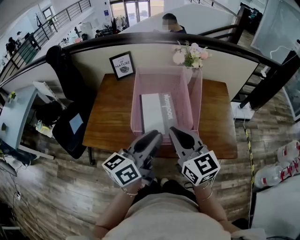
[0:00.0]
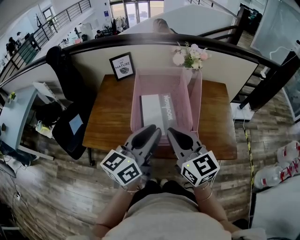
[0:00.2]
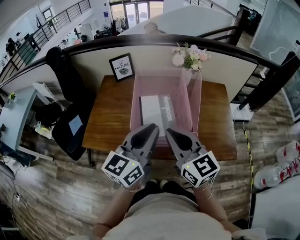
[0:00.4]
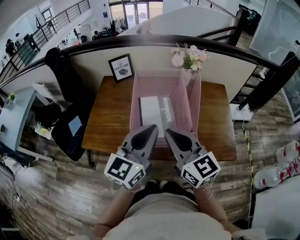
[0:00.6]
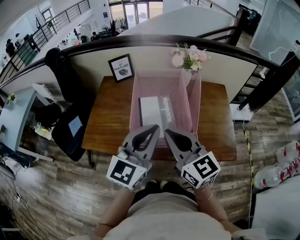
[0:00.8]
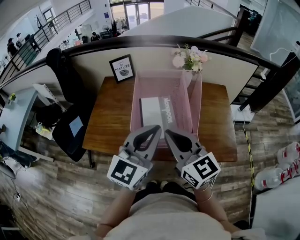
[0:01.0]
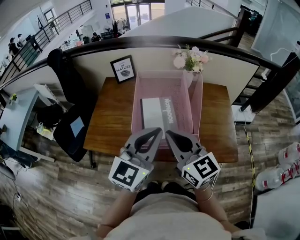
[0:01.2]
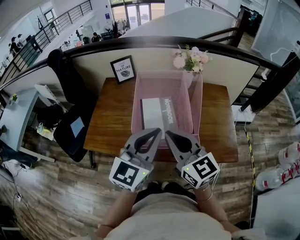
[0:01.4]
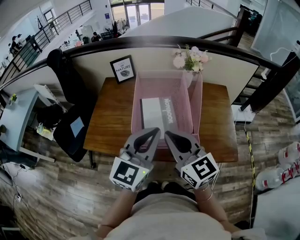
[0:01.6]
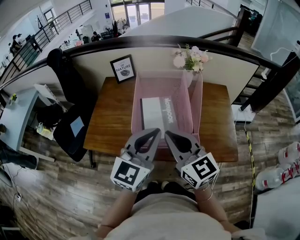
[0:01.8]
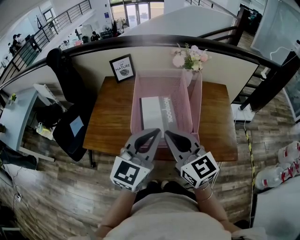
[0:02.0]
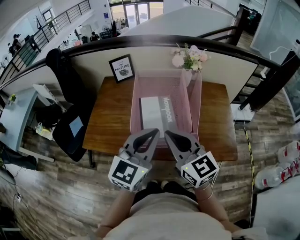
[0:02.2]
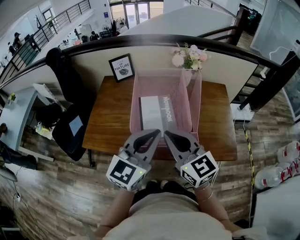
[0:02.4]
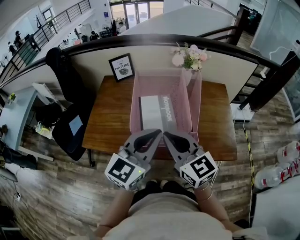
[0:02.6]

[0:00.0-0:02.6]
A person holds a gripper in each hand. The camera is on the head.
0:00.0 to 0:01.2: The left gripper rotates around the line of its fingers by roughly 40 degrees, clockwise from behind.
0:01.2 to 0:02.6: The grippers move only a little.

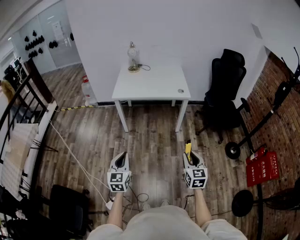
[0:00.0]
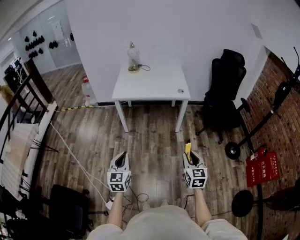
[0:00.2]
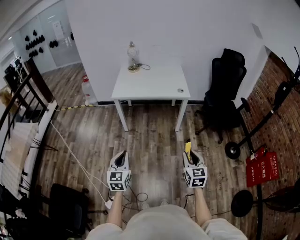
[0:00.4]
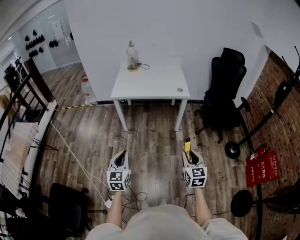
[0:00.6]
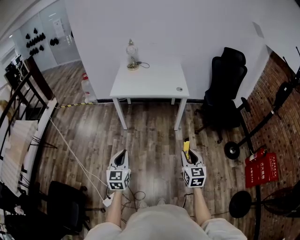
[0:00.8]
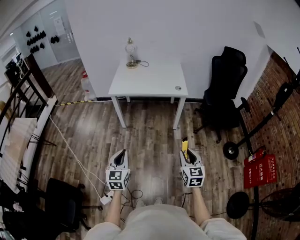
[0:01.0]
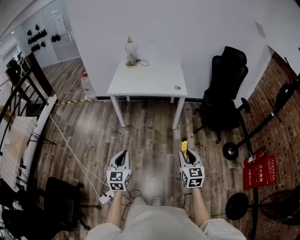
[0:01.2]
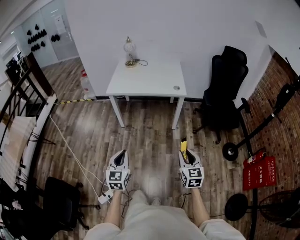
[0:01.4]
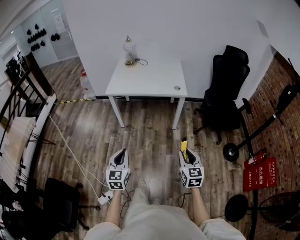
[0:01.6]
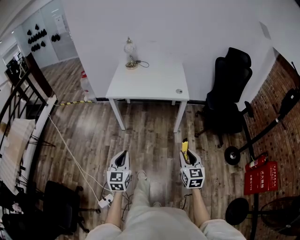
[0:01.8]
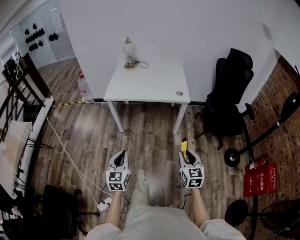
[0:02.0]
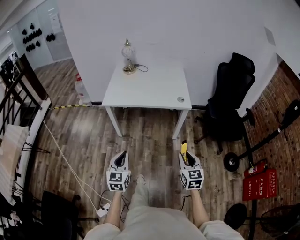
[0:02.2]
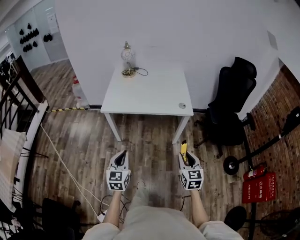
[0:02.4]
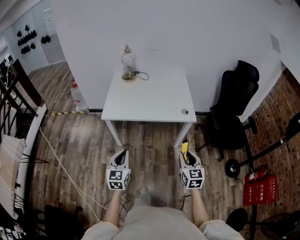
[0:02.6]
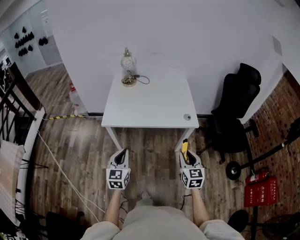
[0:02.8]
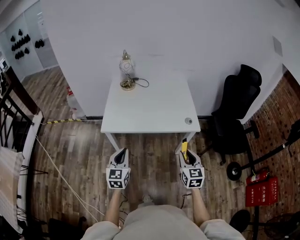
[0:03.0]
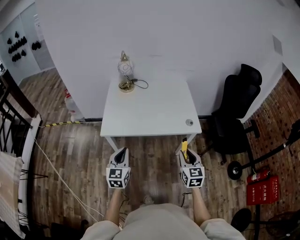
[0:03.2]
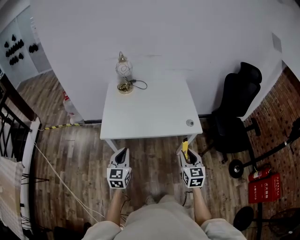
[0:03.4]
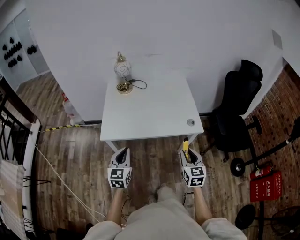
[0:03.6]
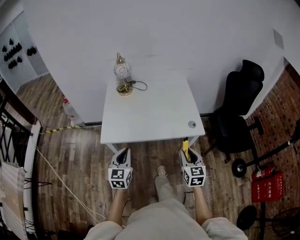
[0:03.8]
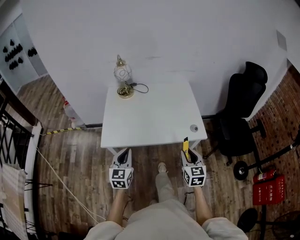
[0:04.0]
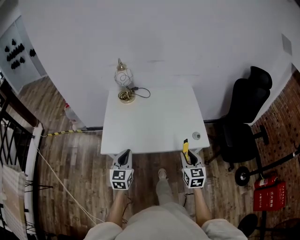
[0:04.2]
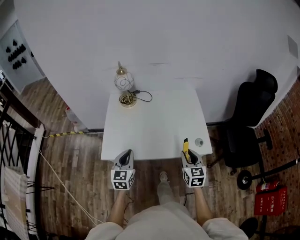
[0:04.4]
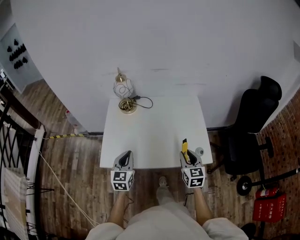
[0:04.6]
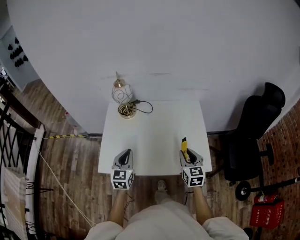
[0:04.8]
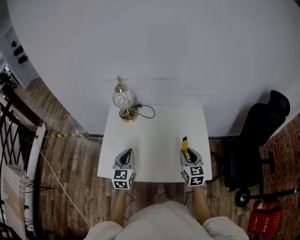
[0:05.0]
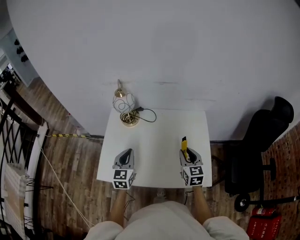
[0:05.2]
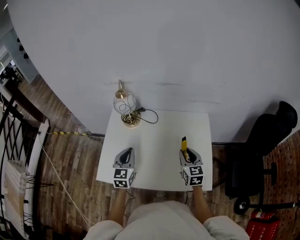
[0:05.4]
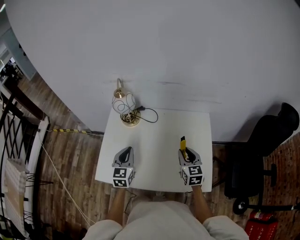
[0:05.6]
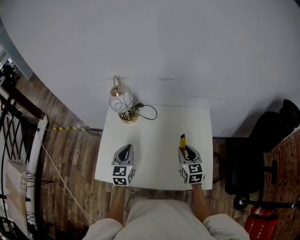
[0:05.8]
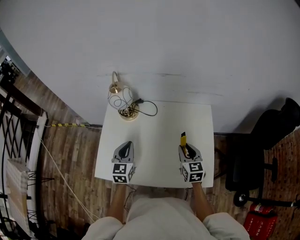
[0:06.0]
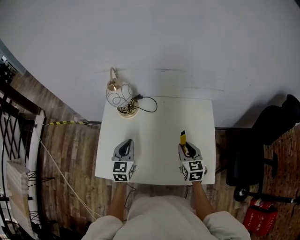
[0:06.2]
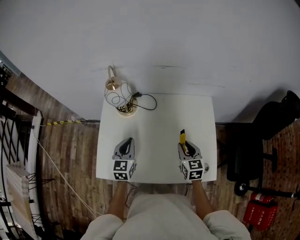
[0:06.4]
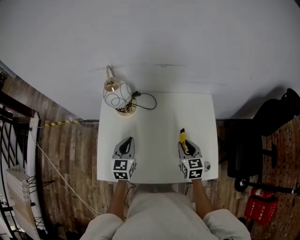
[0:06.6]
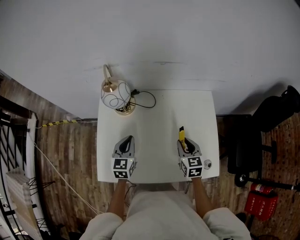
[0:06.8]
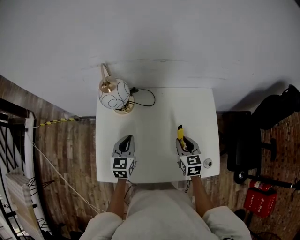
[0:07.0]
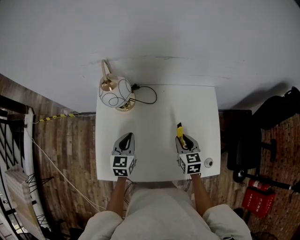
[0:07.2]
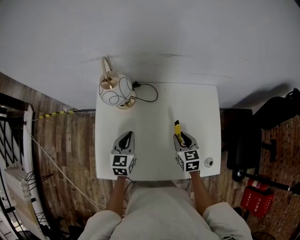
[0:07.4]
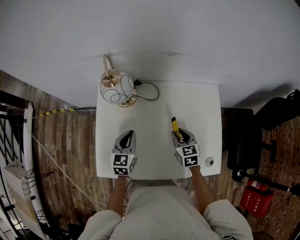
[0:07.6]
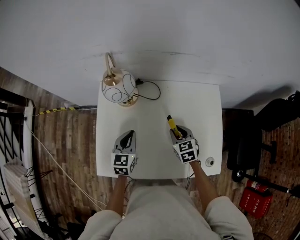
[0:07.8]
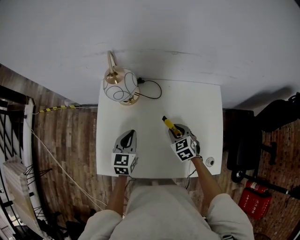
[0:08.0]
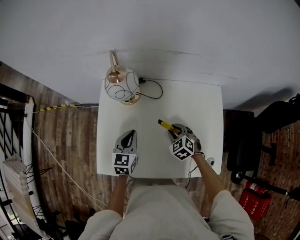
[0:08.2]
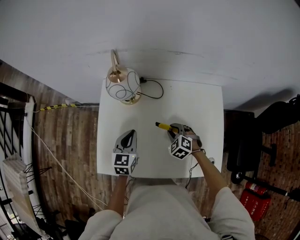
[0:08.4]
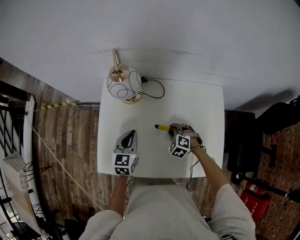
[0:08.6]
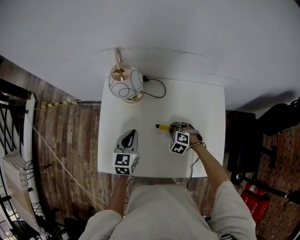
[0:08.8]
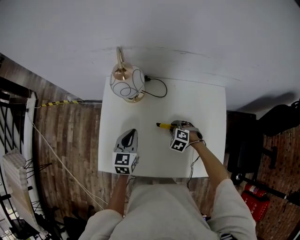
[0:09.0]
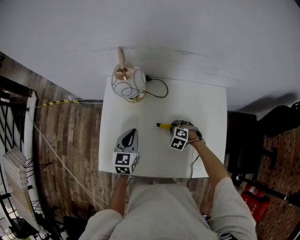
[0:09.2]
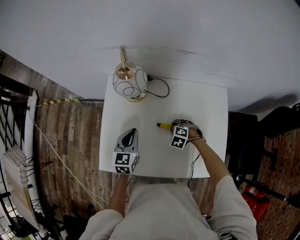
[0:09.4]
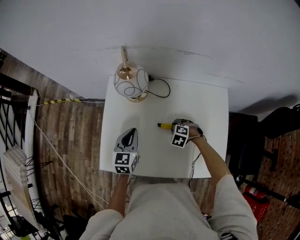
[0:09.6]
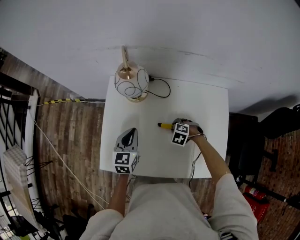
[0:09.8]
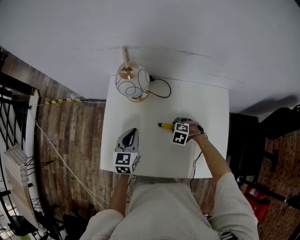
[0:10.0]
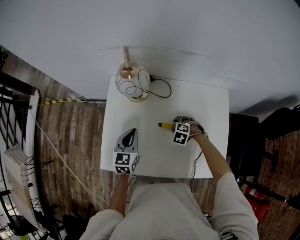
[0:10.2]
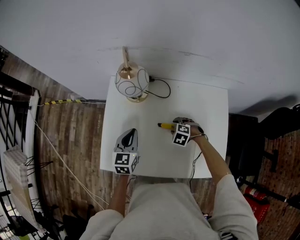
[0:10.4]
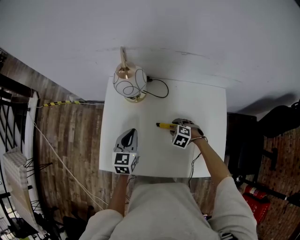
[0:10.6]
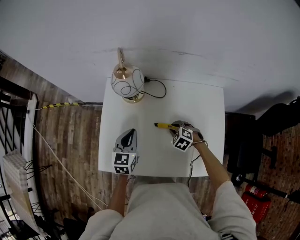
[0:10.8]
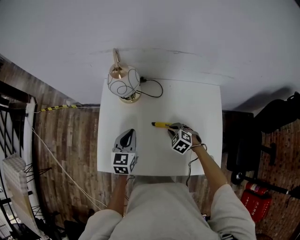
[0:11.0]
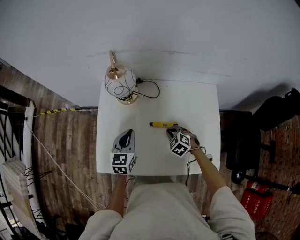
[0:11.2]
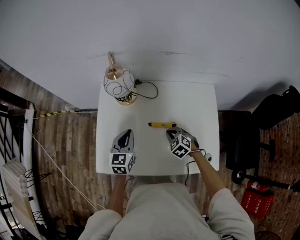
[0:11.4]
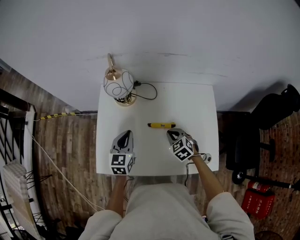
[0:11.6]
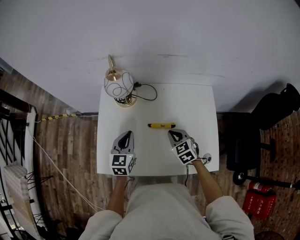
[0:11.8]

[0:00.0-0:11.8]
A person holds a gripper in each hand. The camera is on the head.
0:00.0 to 0:01.4: The grippers both shift to the right by about 10 cm.
0:01.4 to 0:03.0: Both grippers are carried forward, some 40 cm.
0:03.0 to 0:04.4: Both grippers travel together forward, approximately 25 cm.
0:04.4 to 0:06.0: The grippers both shift forward by some 25 cm.
0:06.0 to 0:07.4: The left gripper goes roughly 10 cm downward and forward. Meanwhile the right gripper shifts about 10 cm downward and to the left.
0:07.4 to 0:08.8: The right gripper travels downward and to the left by roughly 10 cm, and rolls counterclockwise, seen from behind, by roughly 60 degrees.
0:08.8 to 0:10.4: The right gripper opens.
0:10.4 to 0:11.8: The right gripper travels upward by some 15 cm, tilts its fingers some 30 degrees upward, and closes its fingers. Meanwhile the left gripper shifts by roughly 5 cm.

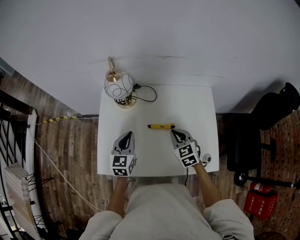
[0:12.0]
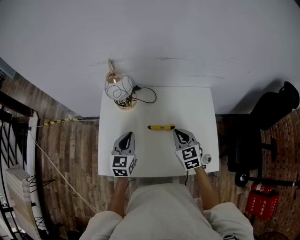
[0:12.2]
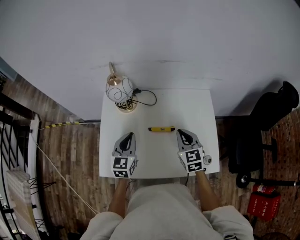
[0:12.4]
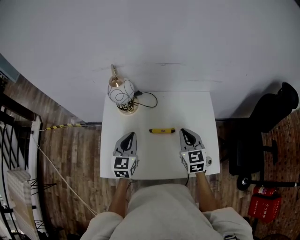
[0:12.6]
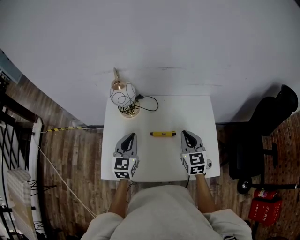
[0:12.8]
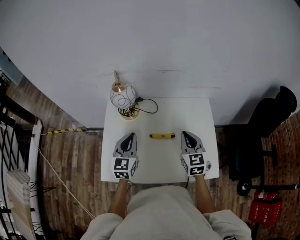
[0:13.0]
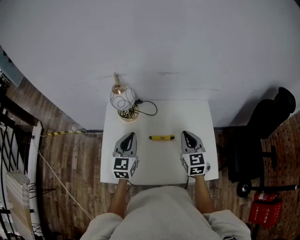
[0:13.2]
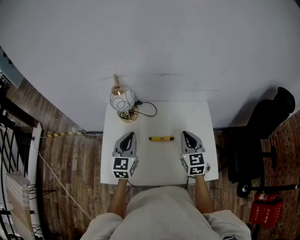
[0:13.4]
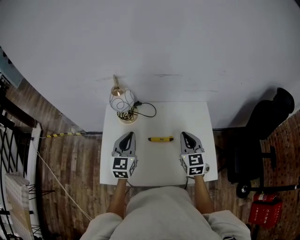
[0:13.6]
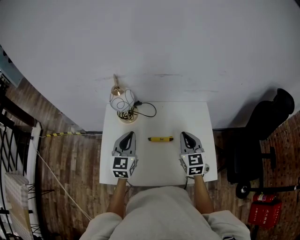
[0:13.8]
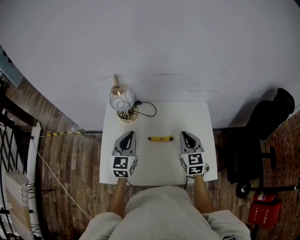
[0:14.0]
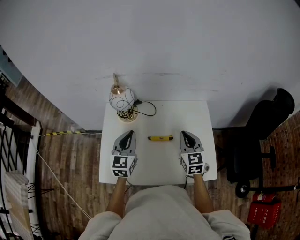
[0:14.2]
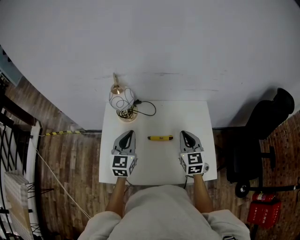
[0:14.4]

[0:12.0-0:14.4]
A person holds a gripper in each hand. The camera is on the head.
0:12.0 to 0:13.2: The right gripper shifts some 15 cm upward and to the right, and changes its angle by roughly 30 degrees. The left gripper heads upward, covering approximately 10 cm.
0:13.2 to 0:14.4: Neither gripper changes place.

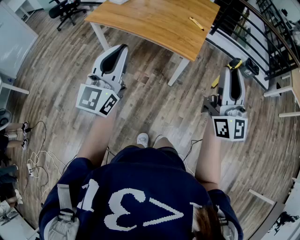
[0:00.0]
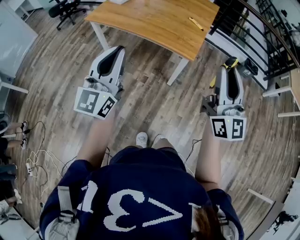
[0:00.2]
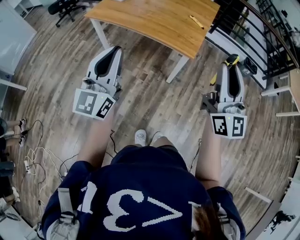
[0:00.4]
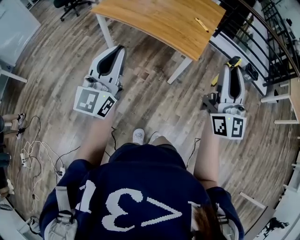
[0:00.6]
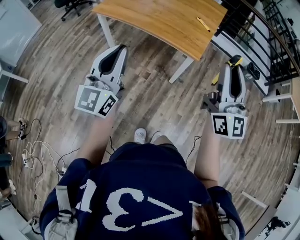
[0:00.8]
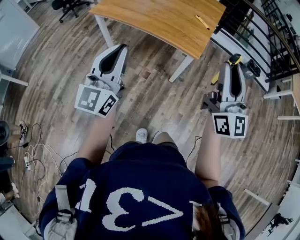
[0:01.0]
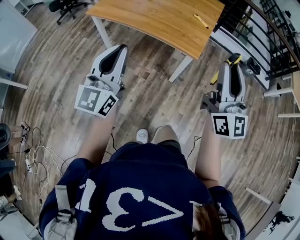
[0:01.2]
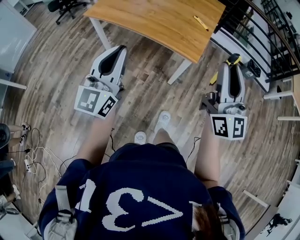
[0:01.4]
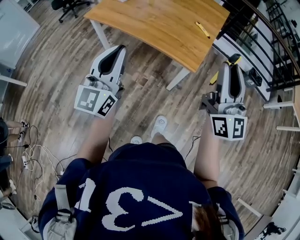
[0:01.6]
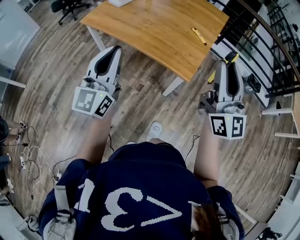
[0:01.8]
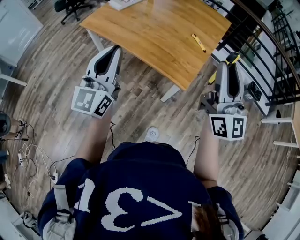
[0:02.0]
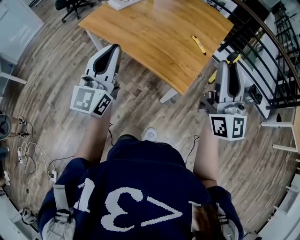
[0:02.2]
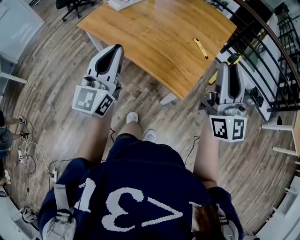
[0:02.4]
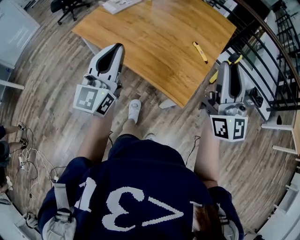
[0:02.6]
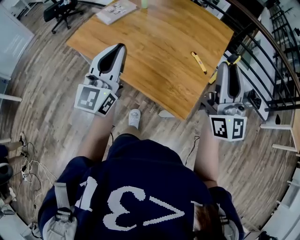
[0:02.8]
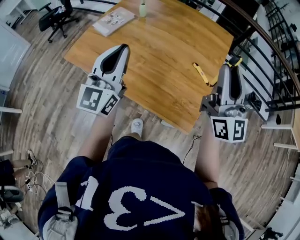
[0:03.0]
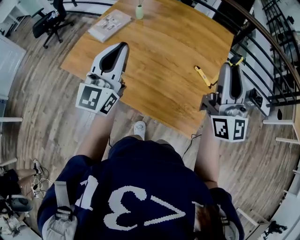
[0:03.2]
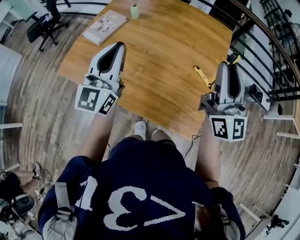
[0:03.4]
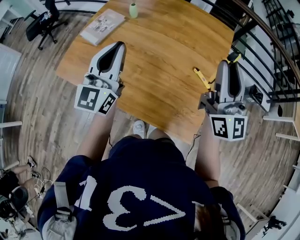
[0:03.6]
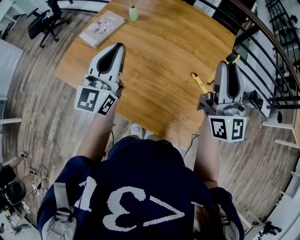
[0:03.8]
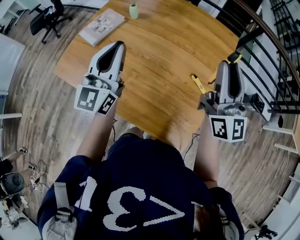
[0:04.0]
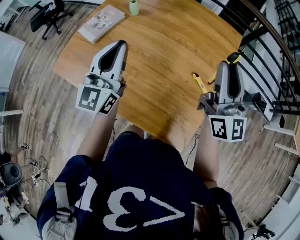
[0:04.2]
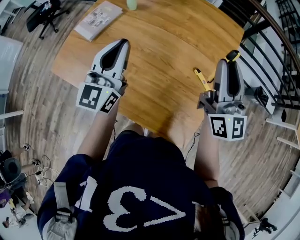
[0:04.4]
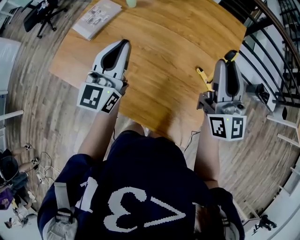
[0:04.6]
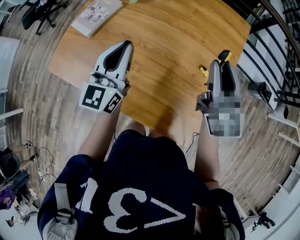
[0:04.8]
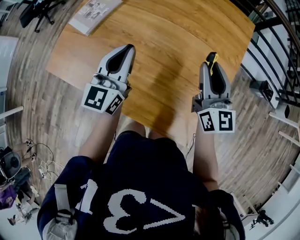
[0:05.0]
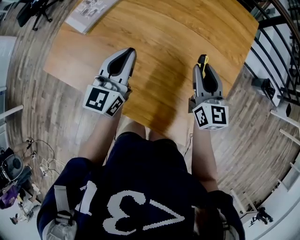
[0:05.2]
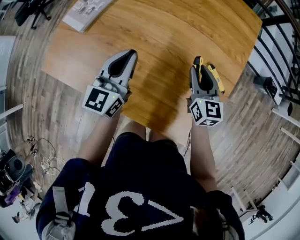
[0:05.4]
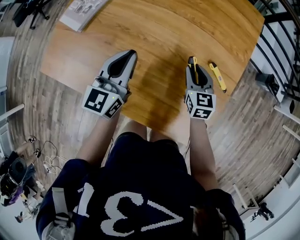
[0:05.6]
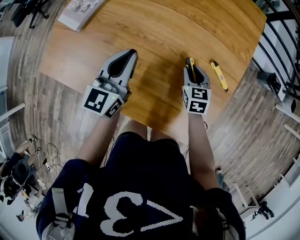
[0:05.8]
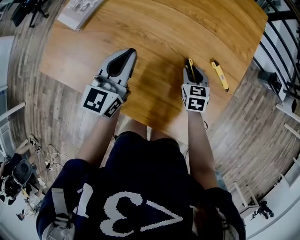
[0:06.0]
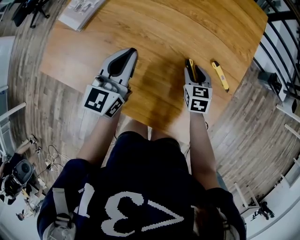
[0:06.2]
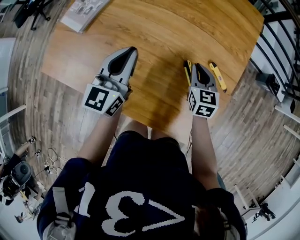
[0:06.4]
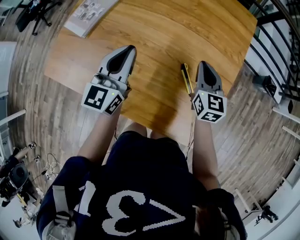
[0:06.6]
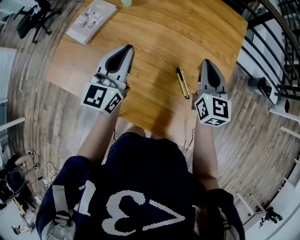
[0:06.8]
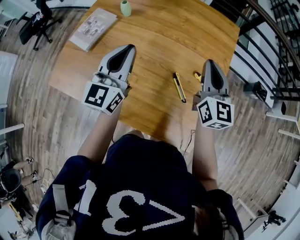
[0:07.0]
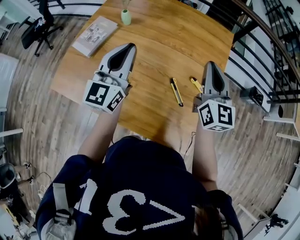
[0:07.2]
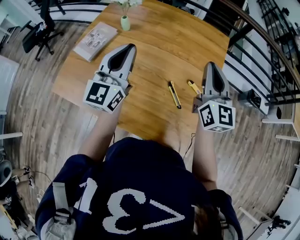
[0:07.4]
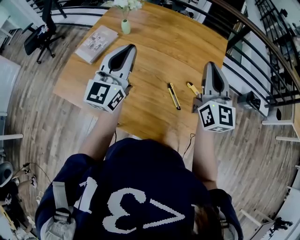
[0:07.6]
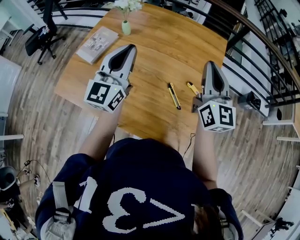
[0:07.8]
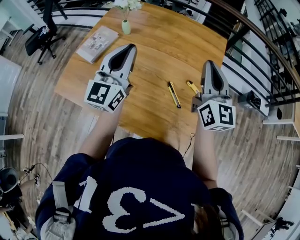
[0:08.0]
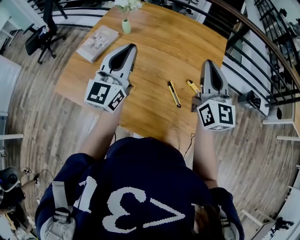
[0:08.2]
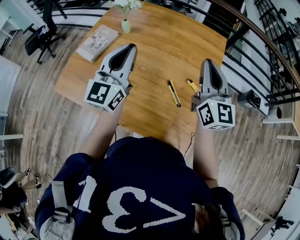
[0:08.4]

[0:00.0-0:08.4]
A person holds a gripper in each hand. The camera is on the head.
0:00.0 to 0:01.4: The right gripper moves roughly 5 cm.
0:01.4 to 0:02.8: Both grippers move forward, about 35 cm.
0:02.8 to 0:04.2: Both grippers move forward, roughly 25 cm.
0:04.2 to 0:05.6: The right gripper travels downward by about 35 cm, and angles its fingers downward, by some 50 degrees, while the left gripper moves downward, roughly 20 cm, and rotates approximately 20 degrees.
0:05.6 to 0:07.0: The right gripper heads upward, covering roughly 25 cm, changes its angle by roughly 30 degrees, and closes its fingers, while the left gripper shifts about 10 cm upward.
0:07.0 to 0:08.4: The two grippers go approximately 10 cm upward.
